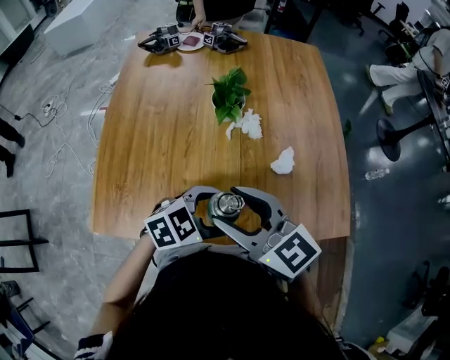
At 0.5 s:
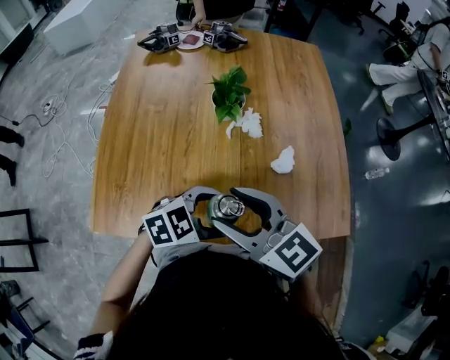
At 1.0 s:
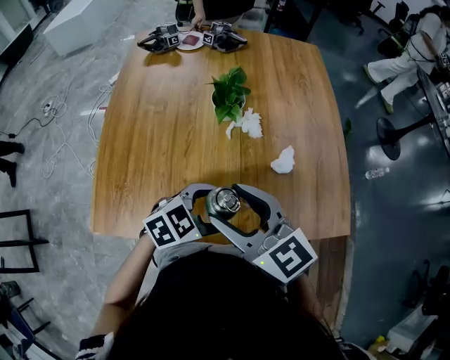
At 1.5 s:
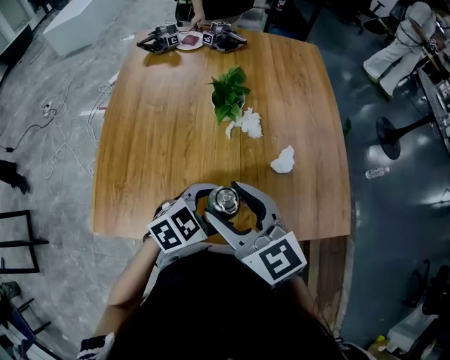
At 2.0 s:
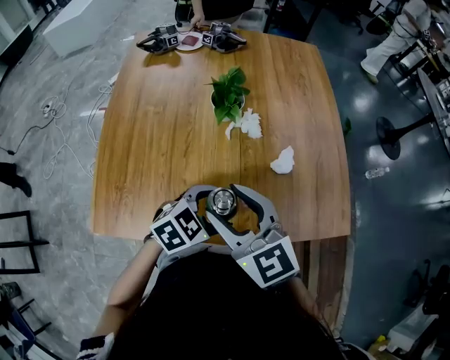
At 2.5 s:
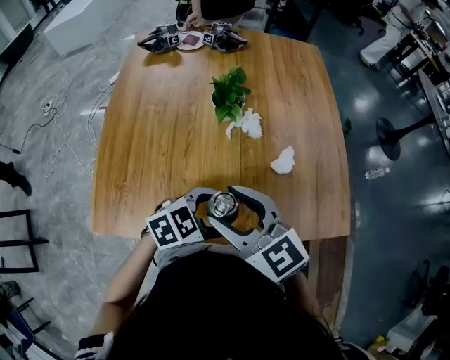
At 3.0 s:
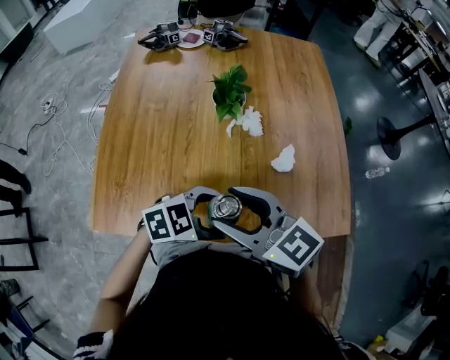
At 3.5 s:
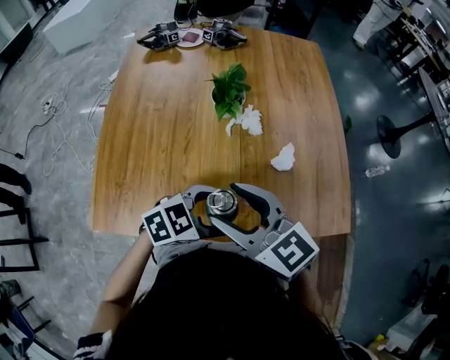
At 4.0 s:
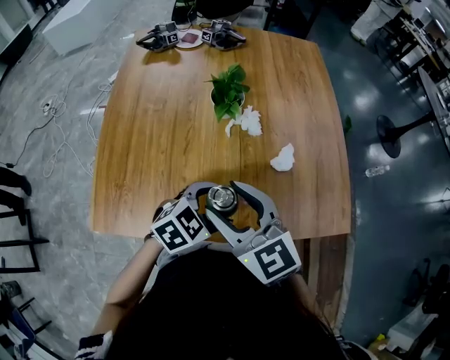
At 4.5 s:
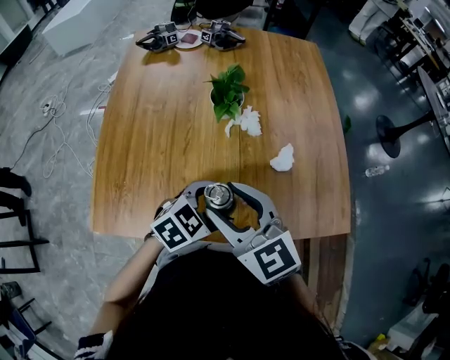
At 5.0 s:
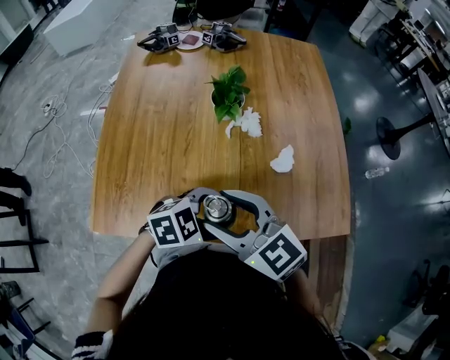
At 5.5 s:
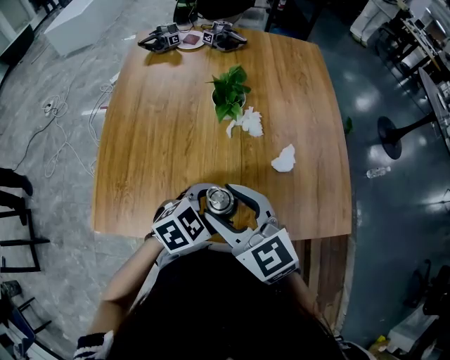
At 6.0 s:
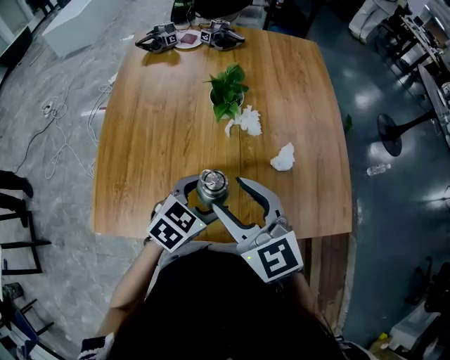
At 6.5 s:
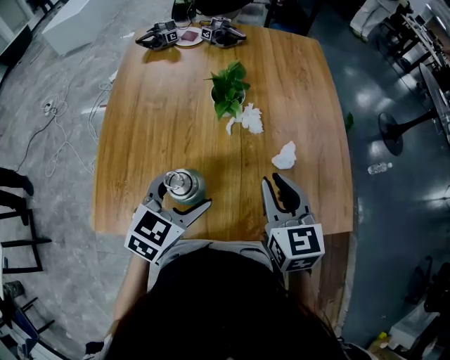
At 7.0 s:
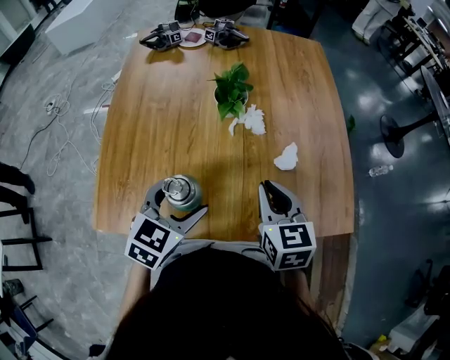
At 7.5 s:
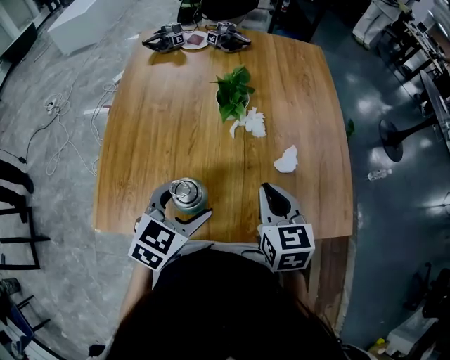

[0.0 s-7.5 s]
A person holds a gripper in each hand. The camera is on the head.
0.0 to 5.5 s: The grippers move only a little.
5.5 to 7.5 s: The right gripper moves to the right and forward, approximately 10 cm, rotates roughly 30 degrees, and closes, while the left gripper goes approximately 10 cm to the left, and turns by approximately 30 degrees.

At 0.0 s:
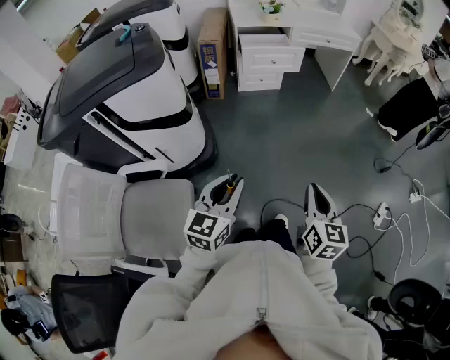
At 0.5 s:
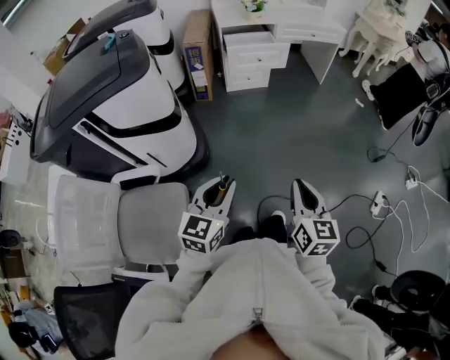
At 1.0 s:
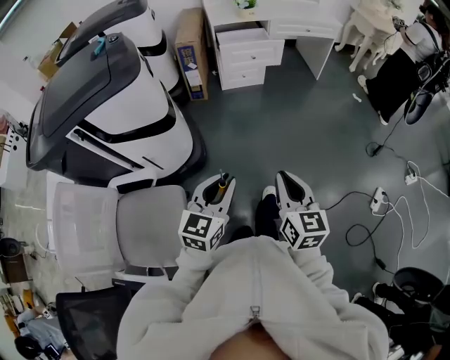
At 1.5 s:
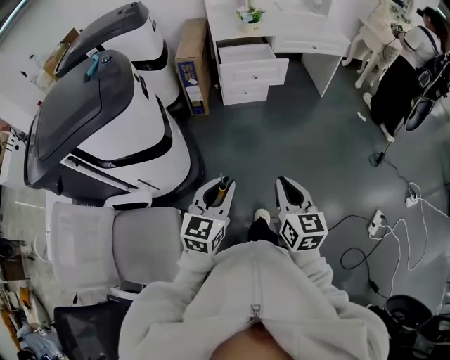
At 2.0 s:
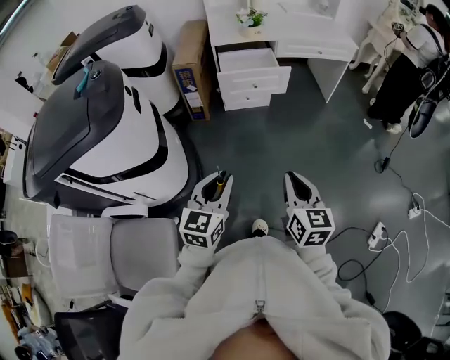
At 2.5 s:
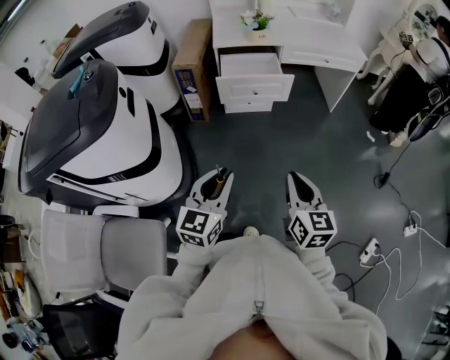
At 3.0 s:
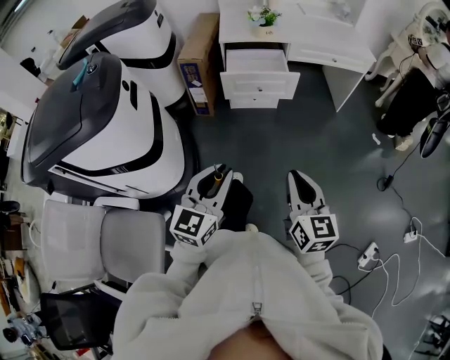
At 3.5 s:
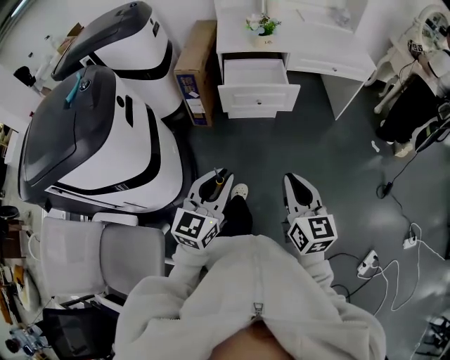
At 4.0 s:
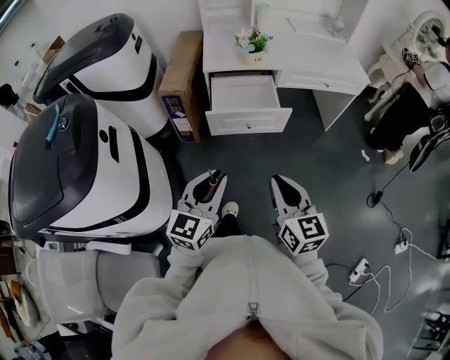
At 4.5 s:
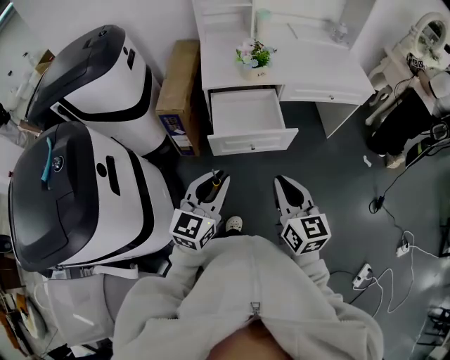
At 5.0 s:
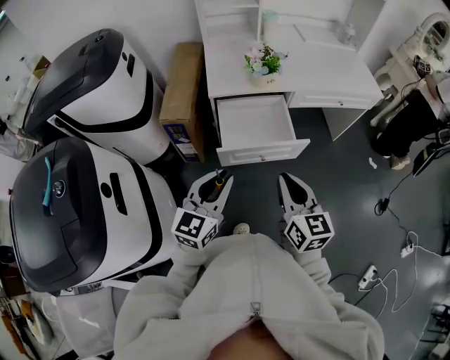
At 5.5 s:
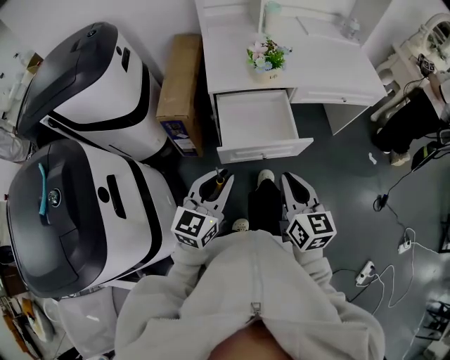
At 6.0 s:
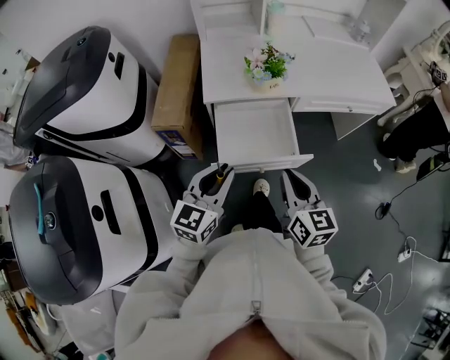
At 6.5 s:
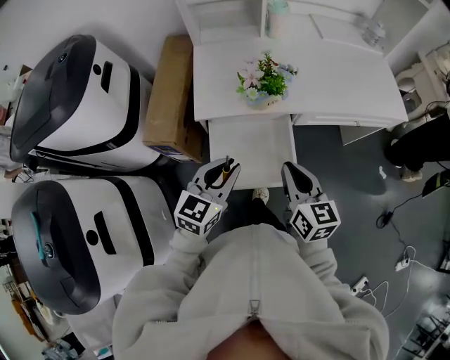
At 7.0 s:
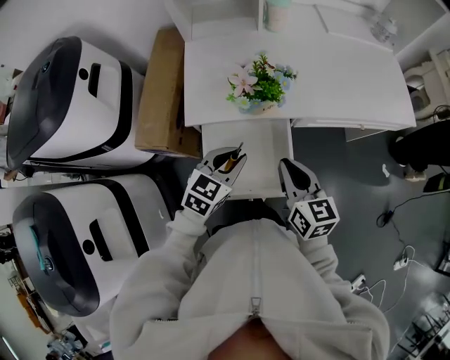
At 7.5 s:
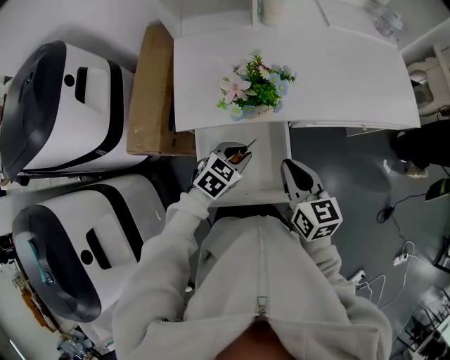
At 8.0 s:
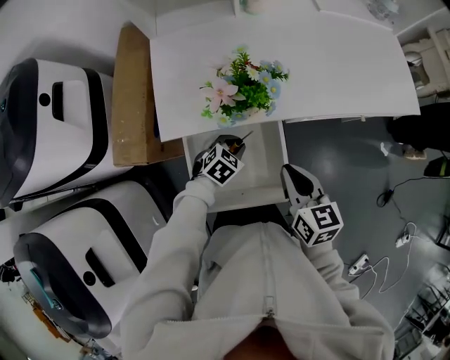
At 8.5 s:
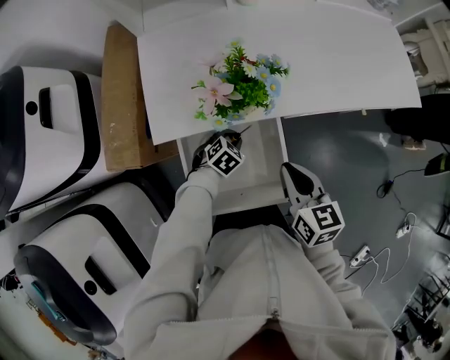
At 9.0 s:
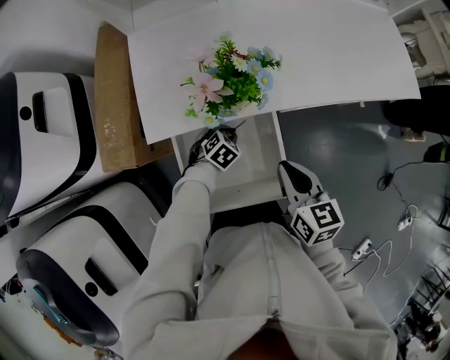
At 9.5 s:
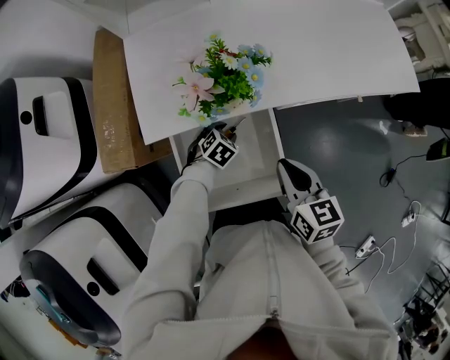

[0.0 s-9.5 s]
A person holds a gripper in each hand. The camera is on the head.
0.0 to 2.0 s: The two grippers go roughly 25 cm forward.
2.0 to 4.0 s: Both grippers move forward, about 25 cm.
4.0 to 5.5 s: The grippers both shift forward by some 20 cm.
5.5 to 7.5 s: The left gripper goes about 35 cm forward and downward, and points its fingers some 40 degrees further downward, while the right gripper travels forward by some 30 cm.
7.5 to 9.5 s: The left gripper goes some 15 cm downward, turns by roughly 20 degrees, and opens up. The right gripper shifts by approximately 5 cm.

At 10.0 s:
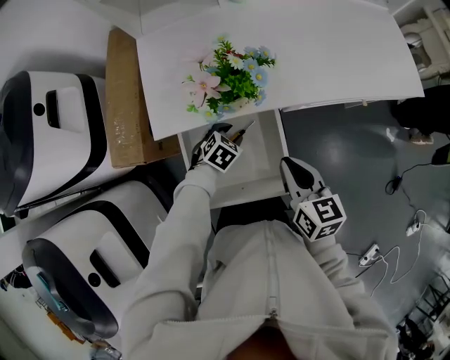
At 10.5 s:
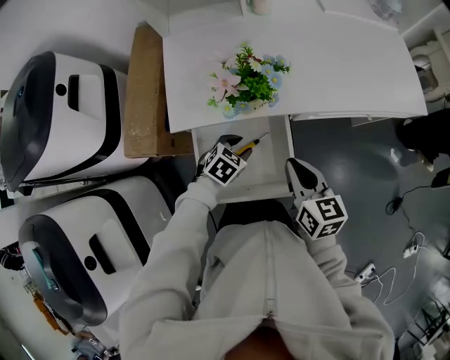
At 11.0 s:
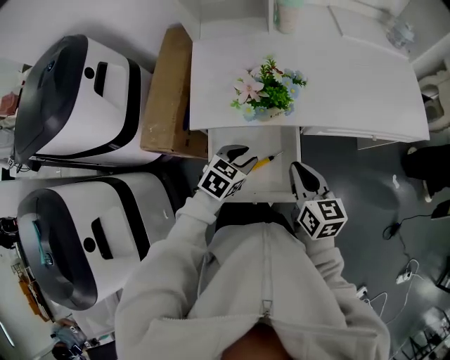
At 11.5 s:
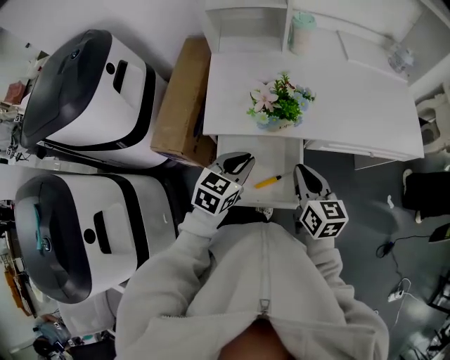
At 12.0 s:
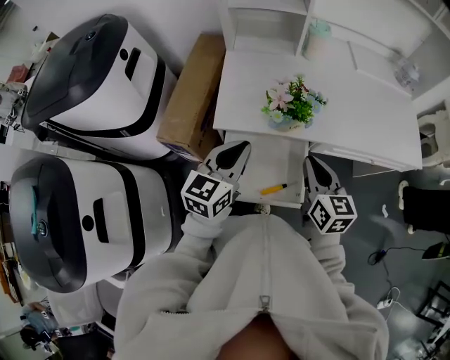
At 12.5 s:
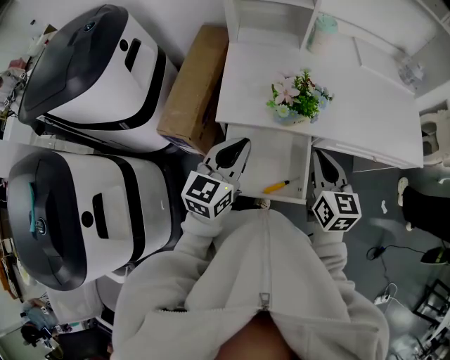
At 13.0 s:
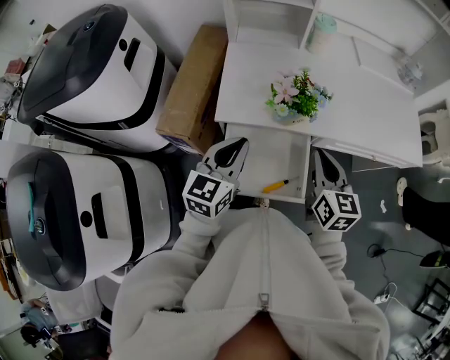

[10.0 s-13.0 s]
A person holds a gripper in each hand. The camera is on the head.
10.0 to 11.5 s: The right gripper shifts approximately 5 cm upward. Meanwhile the left gripper goes approximately 25 cm upward, angles its fingers upward, by about 30 degrees, and closes its fingers.
11.5 to 13.0 s: The right gripper moves approximately 5 cm. The left gripper moves upward and to the left, some 10 cm, and changes its angle by about 20 degrees.

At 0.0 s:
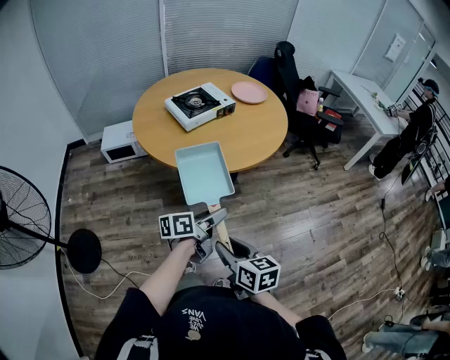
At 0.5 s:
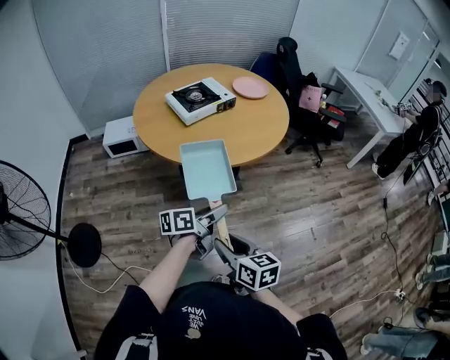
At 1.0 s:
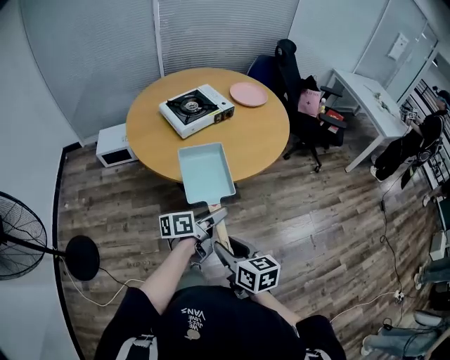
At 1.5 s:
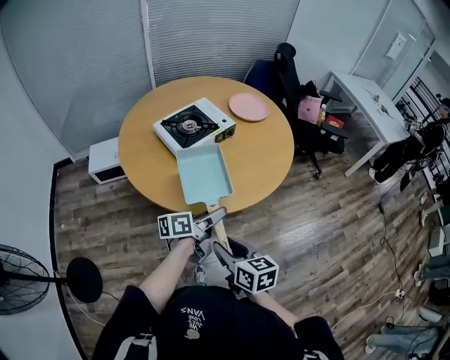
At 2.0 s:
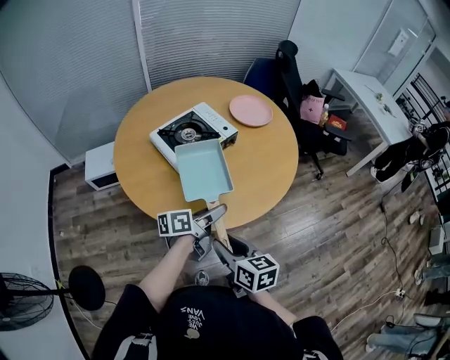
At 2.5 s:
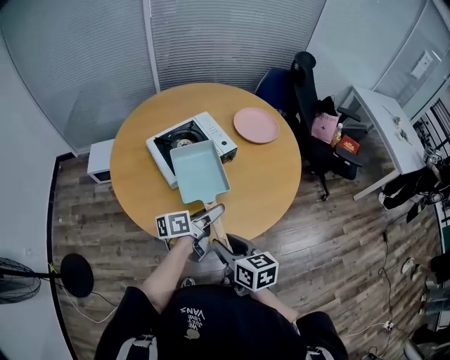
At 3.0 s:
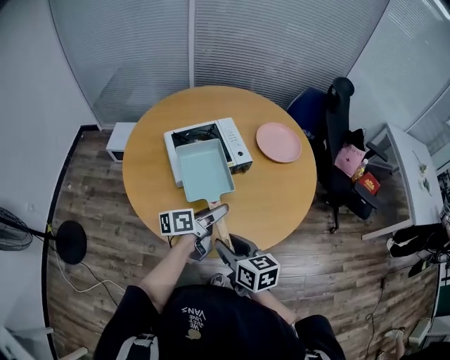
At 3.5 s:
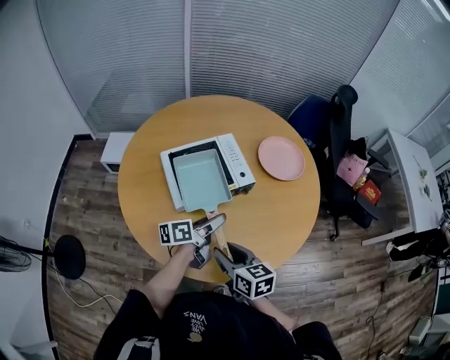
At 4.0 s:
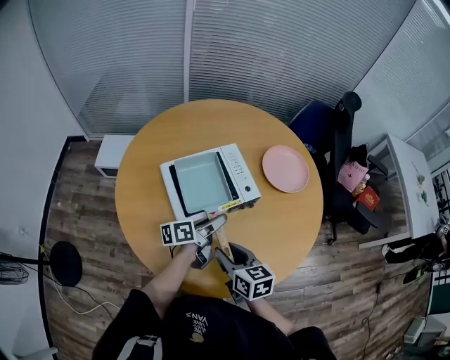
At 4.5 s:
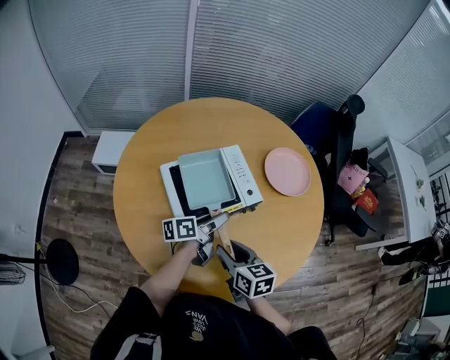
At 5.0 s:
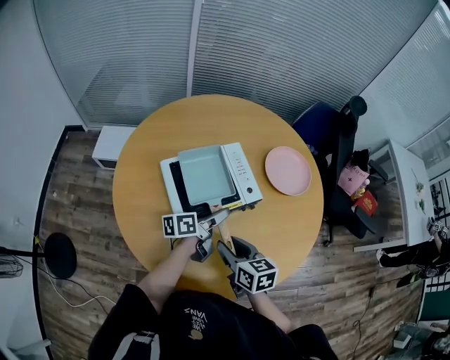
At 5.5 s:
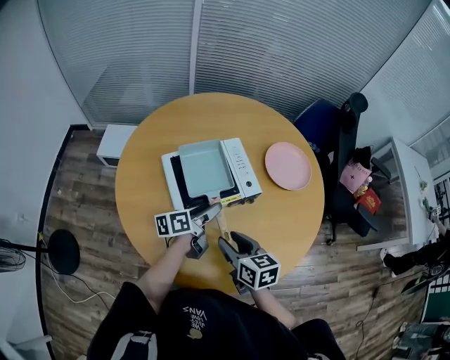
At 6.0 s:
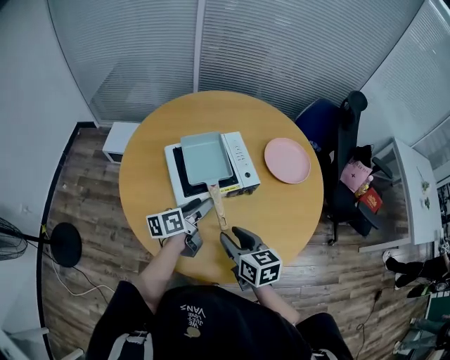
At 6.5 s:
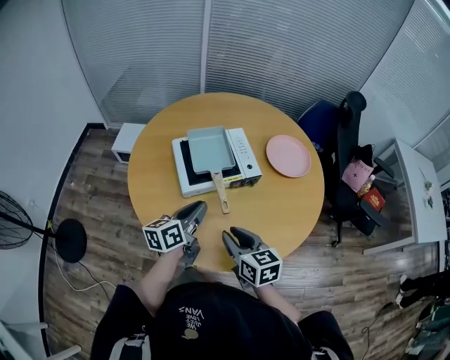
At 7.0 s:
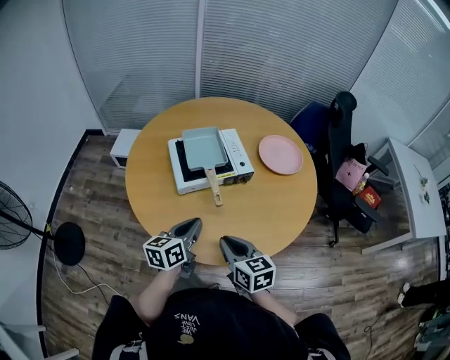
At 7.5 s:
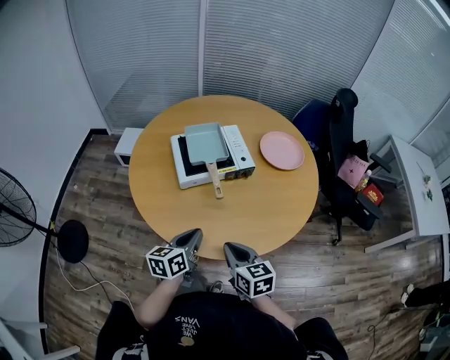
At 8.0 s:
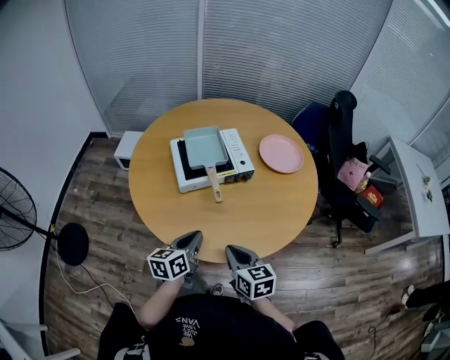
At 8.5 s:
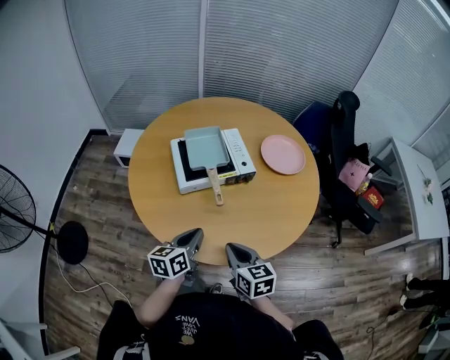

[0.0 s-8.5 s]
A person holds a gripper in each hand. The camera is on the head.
0.0 to 2.0 s: Both grippers travel together forward, about 30 cm.
2.0 to 4.0 s: The grippers both shift forward by roughly 25 cm. The right gripper changes its angle by about 20 degrees, while the left gripper rotates about 20 degrees.
4.0 to 6.5 s: The left gripper moves backward, upward and to the left, about 15 cm, changes its angle by approximately 30 degrees, and closes its fingers; the right gripper heads backward, covering roughly 5 cm.
6.5 to 8.5 s: Both grippers move backward, about 10 cm. The right gripper closes its fingers.
